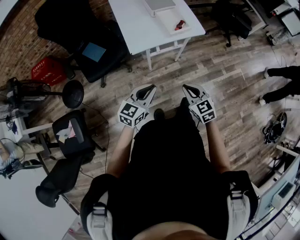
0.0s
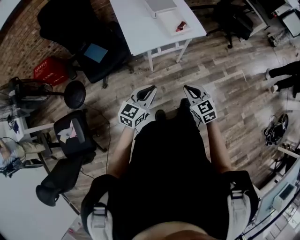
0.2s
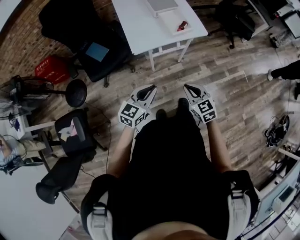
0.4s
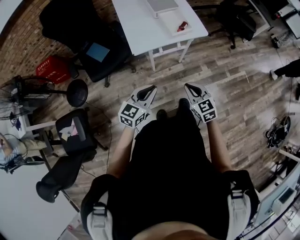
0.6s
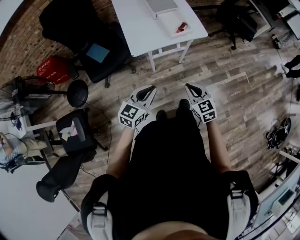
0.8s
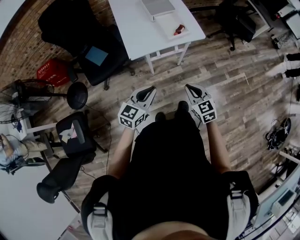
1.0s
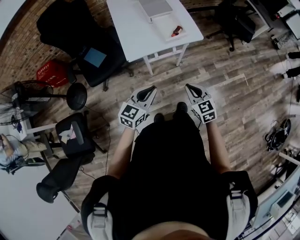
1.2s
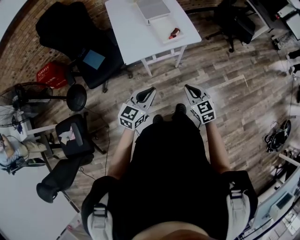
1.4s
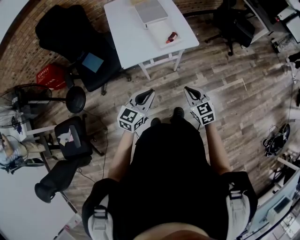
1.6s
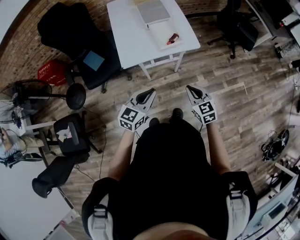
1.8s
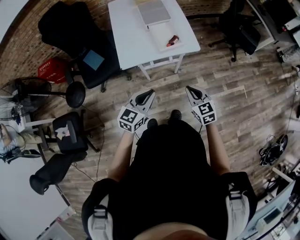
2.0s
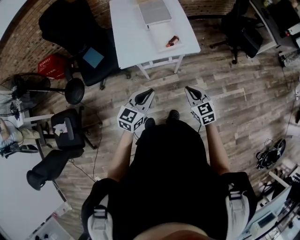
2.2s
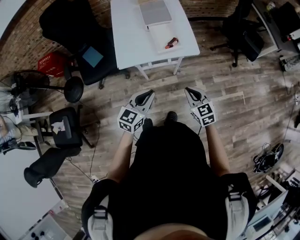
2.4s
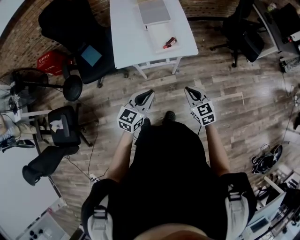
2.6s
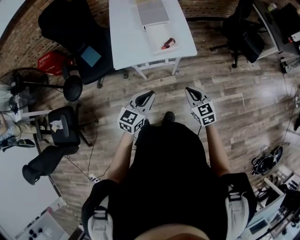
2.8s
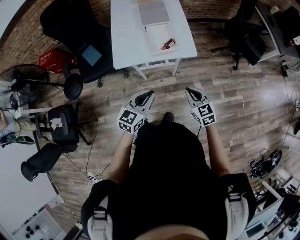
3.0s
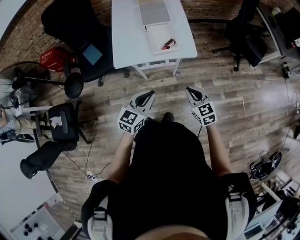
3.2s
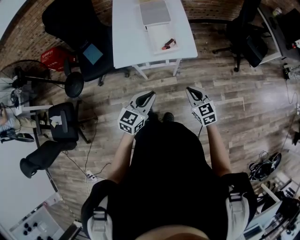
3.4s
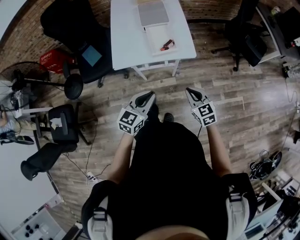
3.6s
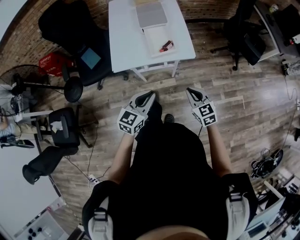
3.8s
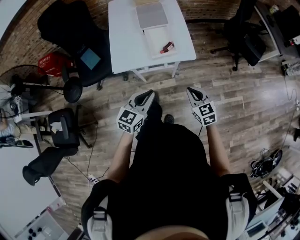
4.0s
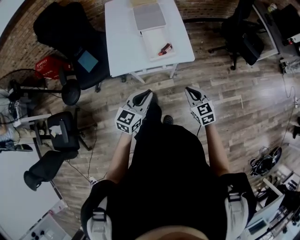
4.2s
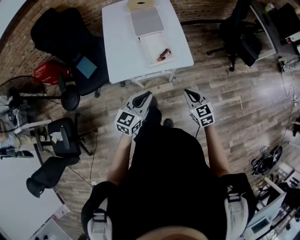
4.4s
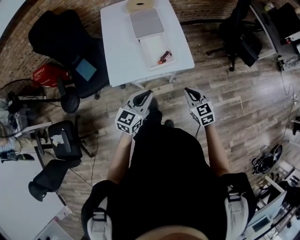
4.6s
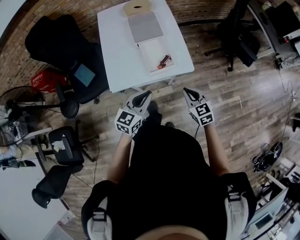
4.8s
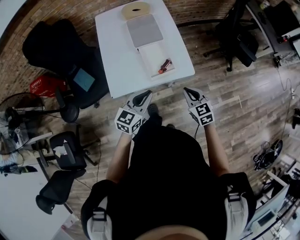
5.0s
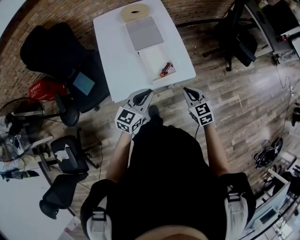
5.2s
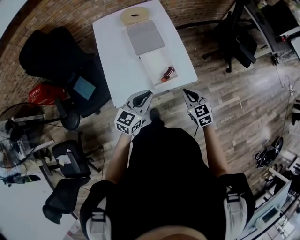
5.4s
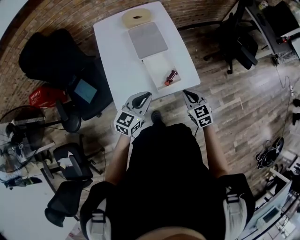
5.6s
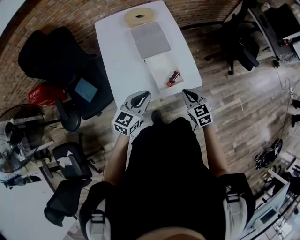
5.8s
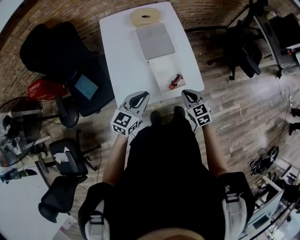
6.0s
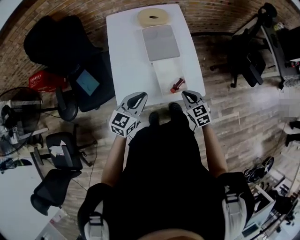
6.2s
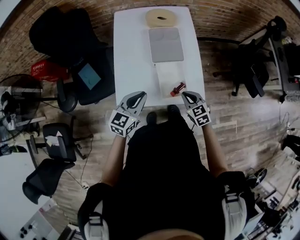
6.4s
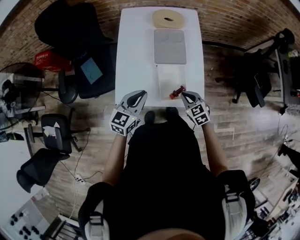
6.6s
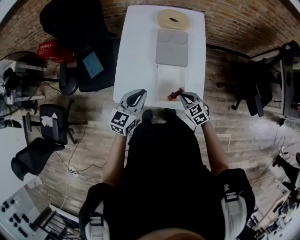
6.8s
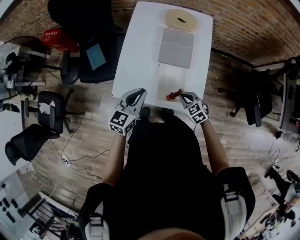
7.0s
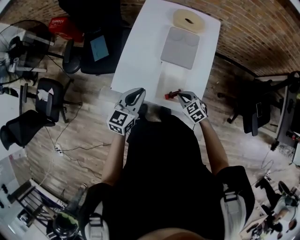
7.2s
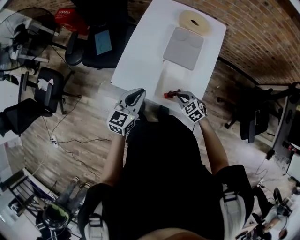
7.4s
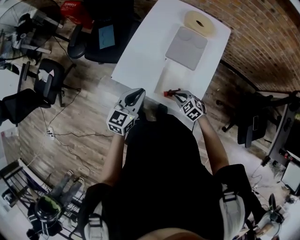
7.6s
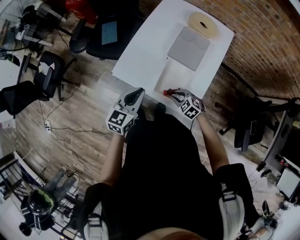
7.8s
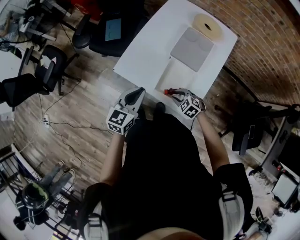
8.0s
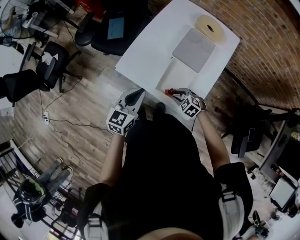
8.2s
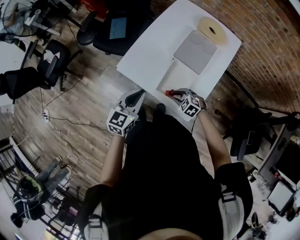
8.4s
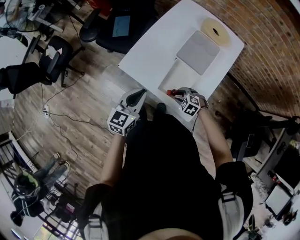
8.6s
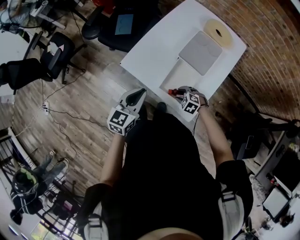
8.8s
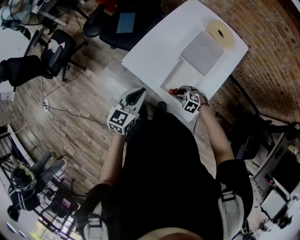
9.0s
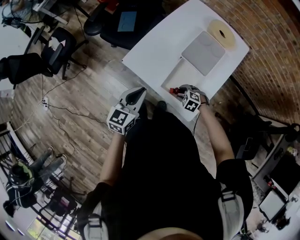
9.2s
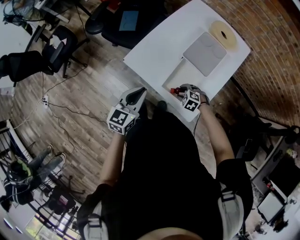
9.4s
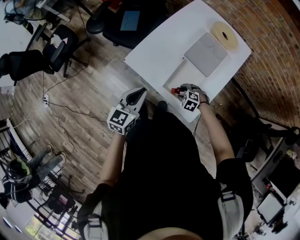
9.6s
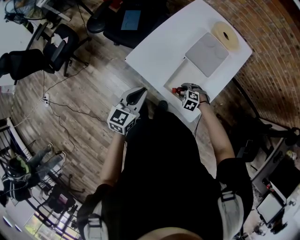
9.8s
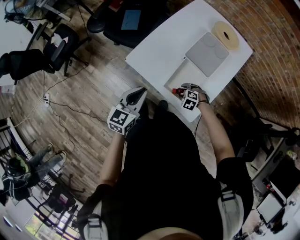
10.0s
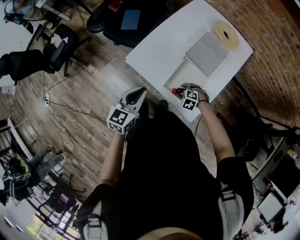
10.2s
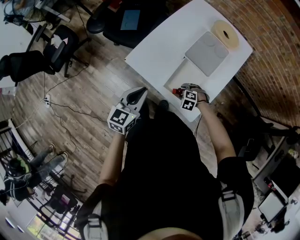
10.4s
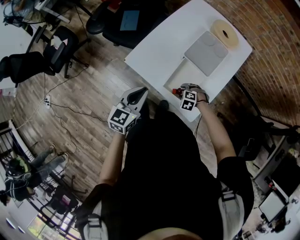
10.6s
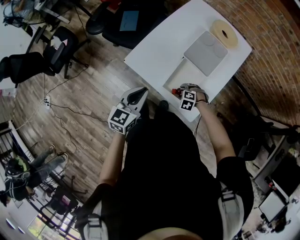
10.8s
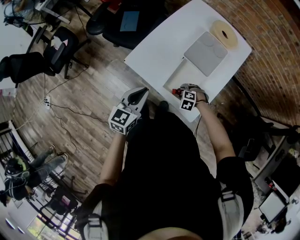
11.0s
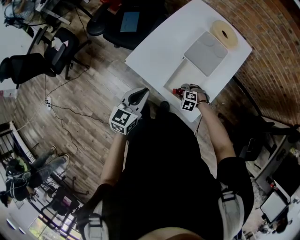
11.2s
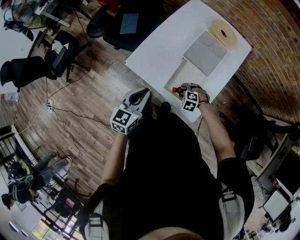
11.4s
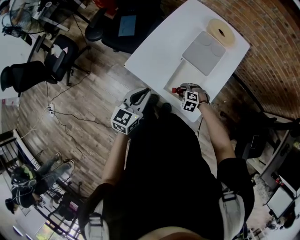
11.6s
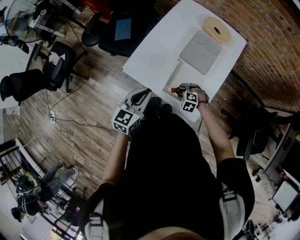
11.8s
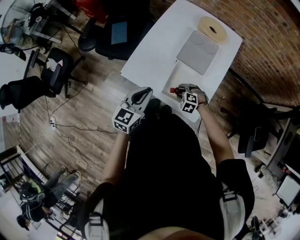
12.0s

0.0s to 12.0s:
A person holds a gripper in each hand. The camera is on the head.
0.0s to 1.6s: The grippers both shift to the right and forward by roughly 15 cm.
1.6s to 3.0s: Both grippers move to the right and forward, roughly 15 cm.
3.0s to 4.4s: Both grippers move forward, approximately 10 cm.
4.4s to 6.0s: Both grippers travel together forward and to the left, roughly 20 cm.
6.0s to 7.6s: The right gripper shifts about 10 cm downward, and changes its angle by roughly 60 degrees. Meanwhile the left gripper rotates about 40 degrees.
7.6s to 9.0s: The right gripper is displaced downward by roughly 5 cm, turns by roughly 30 degrees, and opens its fingers. The left gripper ends up about 5 cm from where it was.
9.0s to 12.0s: The grippers make only small movements.

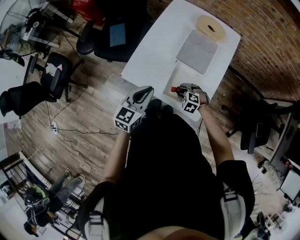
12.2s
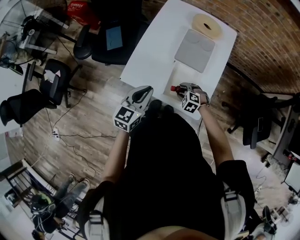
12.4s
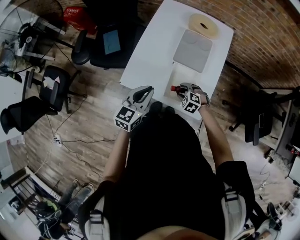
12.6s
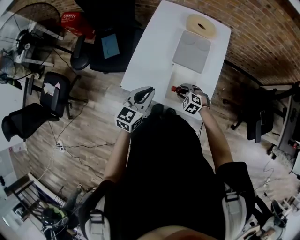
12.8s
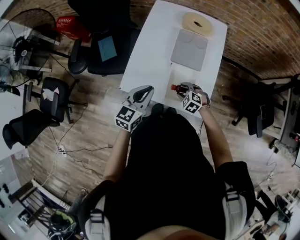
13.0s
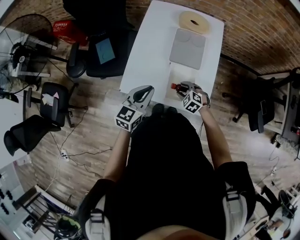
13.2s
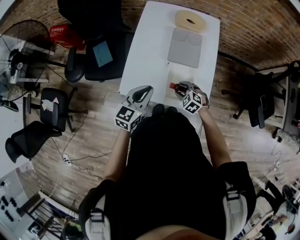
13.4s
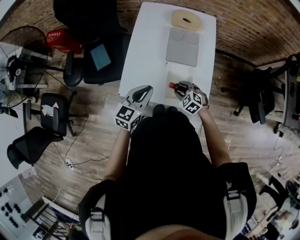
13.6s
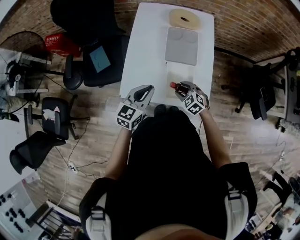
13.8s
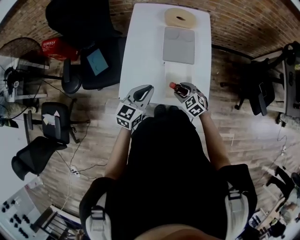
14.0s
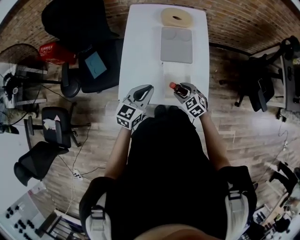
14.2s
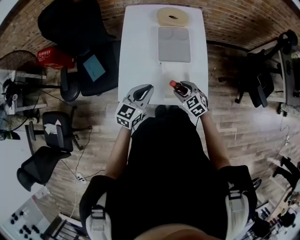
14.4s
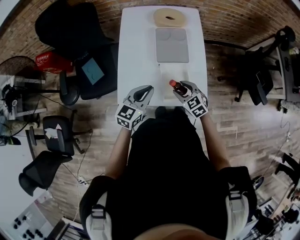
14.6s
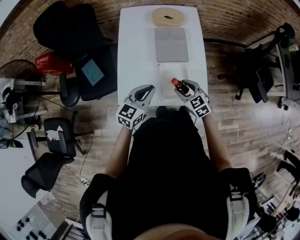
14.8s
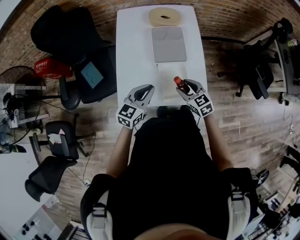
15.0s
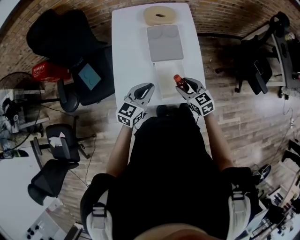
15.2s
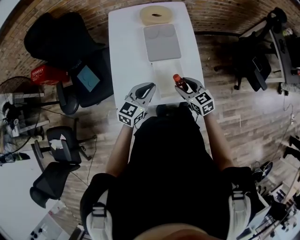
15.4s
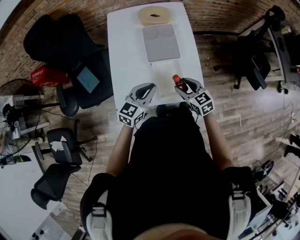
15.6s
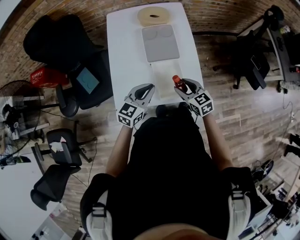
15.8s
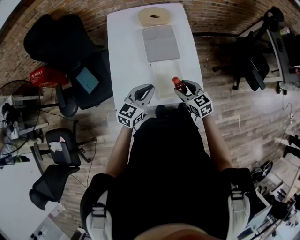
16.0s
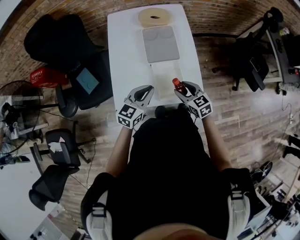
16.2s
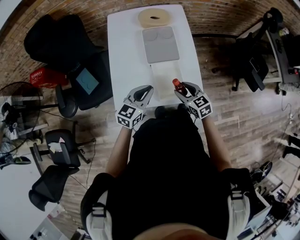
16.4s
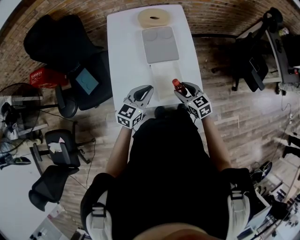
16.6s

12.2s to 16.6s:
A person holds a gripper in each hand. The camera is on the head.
12.2s to 13.6s: The right gripper goes some 5 cm upward, and swivels roughly 30 degrees.
13.6s to 15.2s: The left gripper shifts by some 5 cm, while the right gripper goes approximately 10 cm upward, and swivels about 40 degrees.
15.2s to 16.6s: The grippers move only a little.

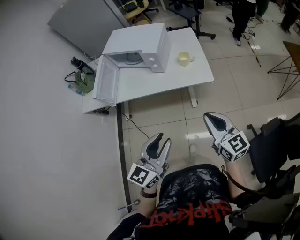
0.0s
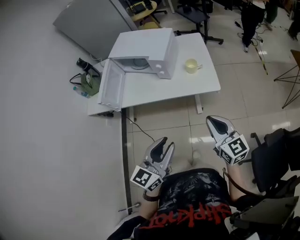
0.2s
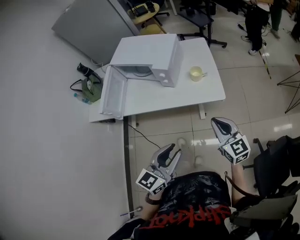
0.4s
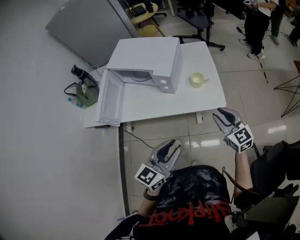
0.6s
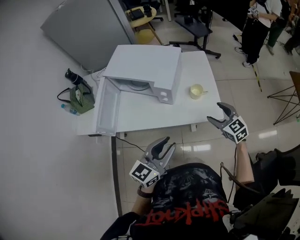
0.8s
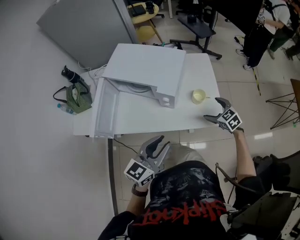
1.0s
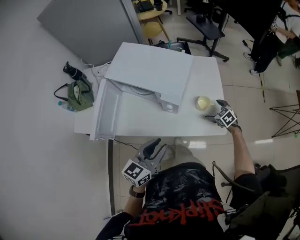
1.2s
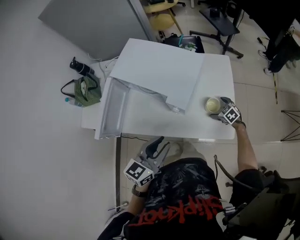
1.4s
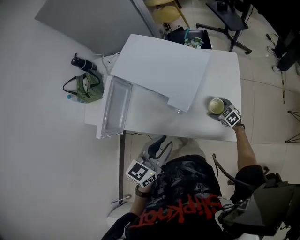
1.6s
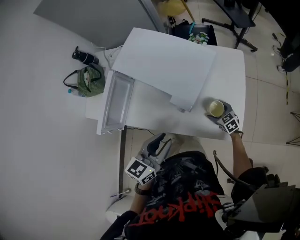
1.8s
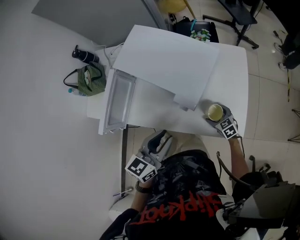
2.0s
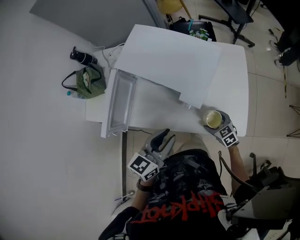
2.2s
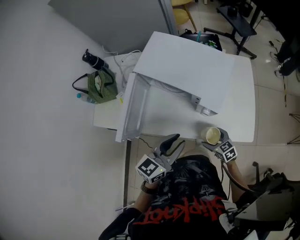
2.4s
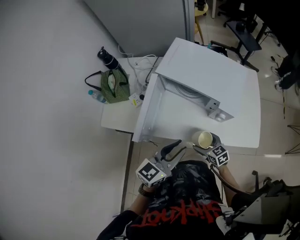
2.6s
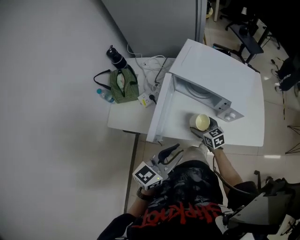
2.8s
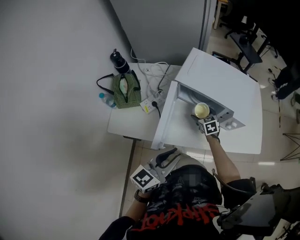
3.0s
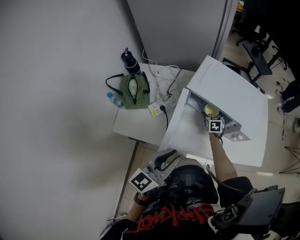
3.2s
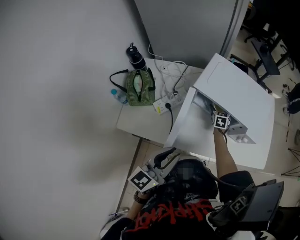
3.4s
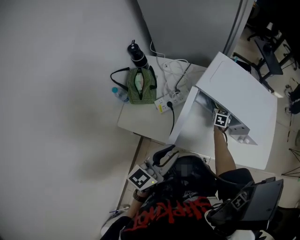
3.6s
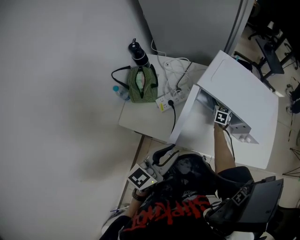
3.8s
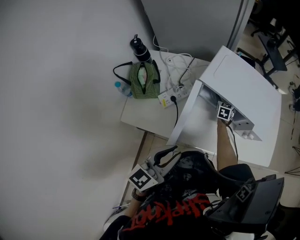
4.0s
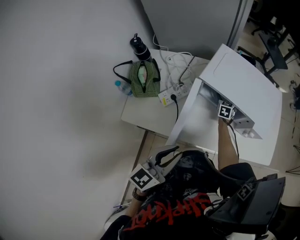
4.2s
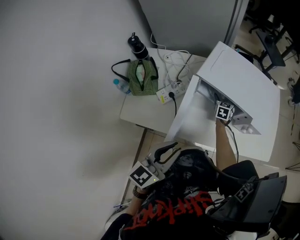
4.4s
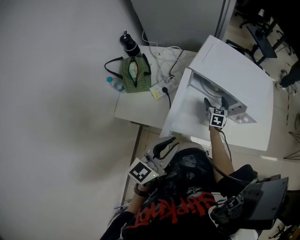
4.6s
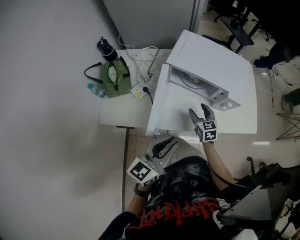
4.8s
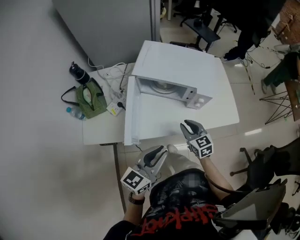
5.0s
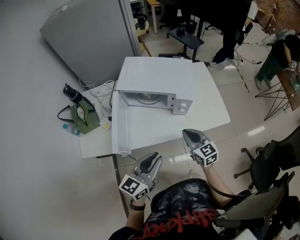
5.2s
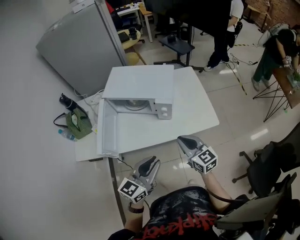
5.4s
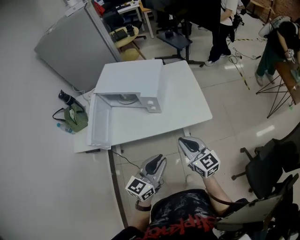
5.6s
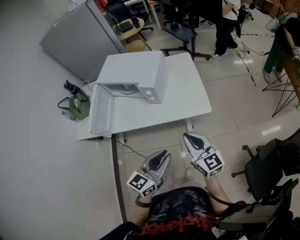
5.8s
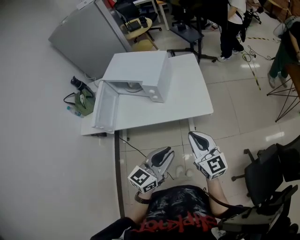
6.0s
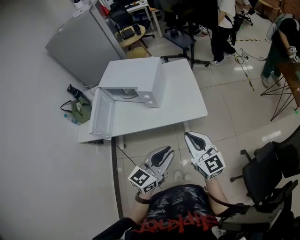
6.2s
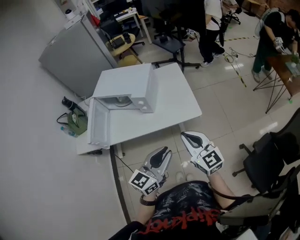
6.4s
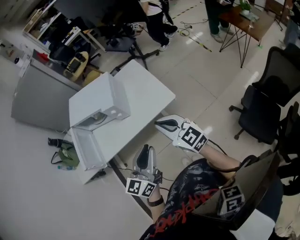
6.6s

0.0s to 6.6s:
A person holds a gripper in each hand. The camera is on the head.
0.0s to 1.6s: The left gripper heads forward, covering roughly 40 cm. Meanwhile the right gripper shifts some 60 cm forward and downward, tilts its fingers approximately 50 degrees downward, and opens.
1.6s to 3.2s: The two grippers go some 35 cm to the left. The right gripper turns by approximately 40 degrees.
3.2s to 5.0s: The right gripper shifts roughly 30 cm backward, upward and to the right, and closes up. Meanwhile the left gripper heads to the right and backward, covering approximately 10 cm.
5.0s to 6.6s: The left gripper heads to the right, covering about 40 cm. The right gripper moves to the right, upward and backward, roughly 40 cm, and swivels about 20 degrees.

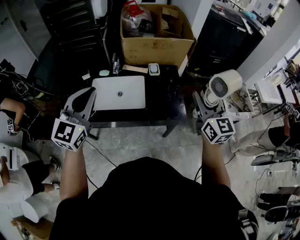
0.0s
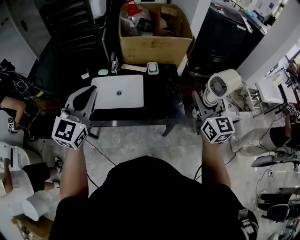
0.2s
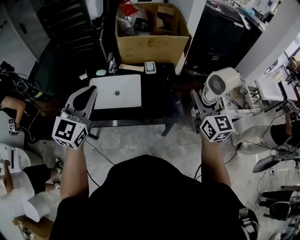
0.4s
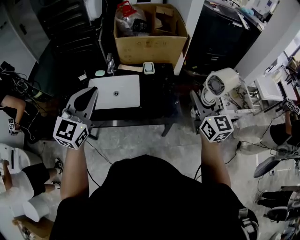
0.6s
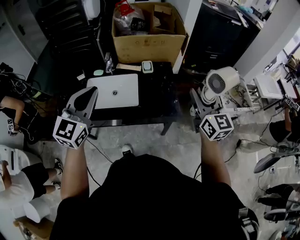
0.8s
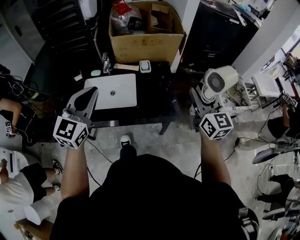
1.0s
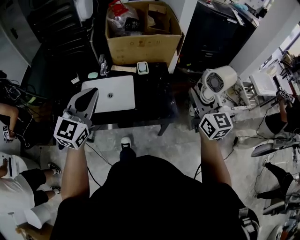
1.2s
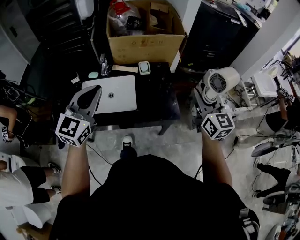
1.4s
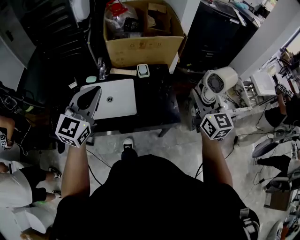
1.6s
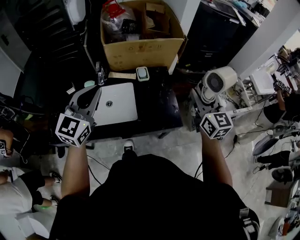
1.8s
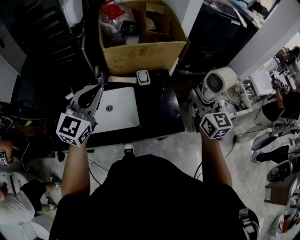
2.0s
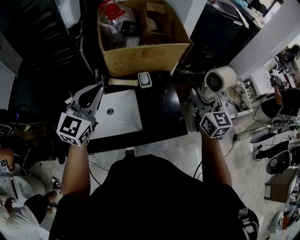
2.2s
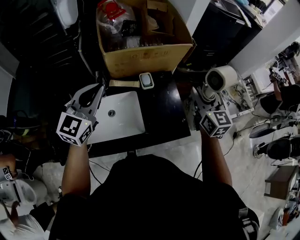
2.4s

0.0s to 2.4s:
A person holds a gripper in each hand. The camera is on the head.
0.0s to 1.2s: The grippers both shift to the right by some 5 cm.
1.2s to 2.4s: The left gripper heads forward, covering roughly 25 cm, while the right gripper shifts some 20 cm forward and to the left.
